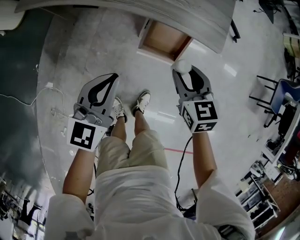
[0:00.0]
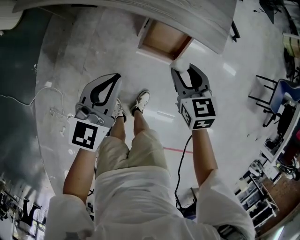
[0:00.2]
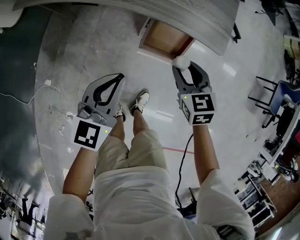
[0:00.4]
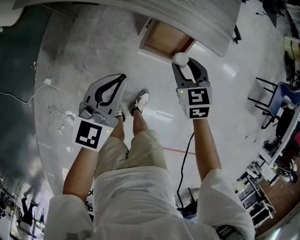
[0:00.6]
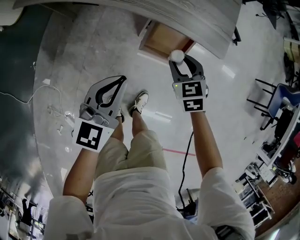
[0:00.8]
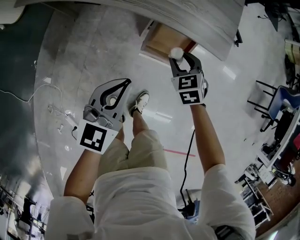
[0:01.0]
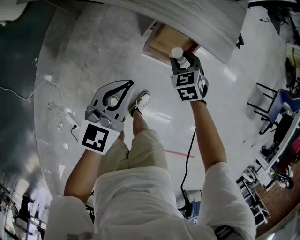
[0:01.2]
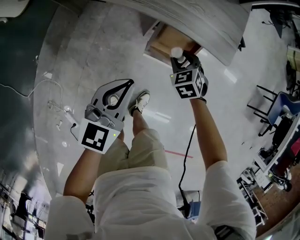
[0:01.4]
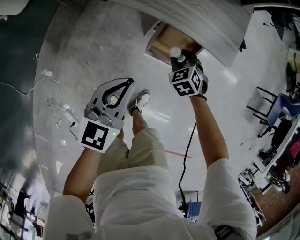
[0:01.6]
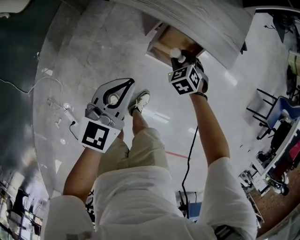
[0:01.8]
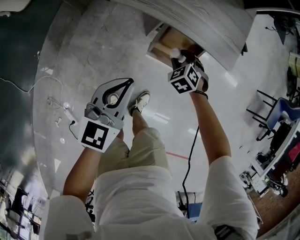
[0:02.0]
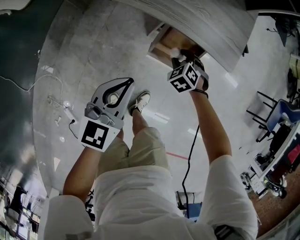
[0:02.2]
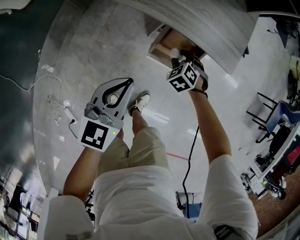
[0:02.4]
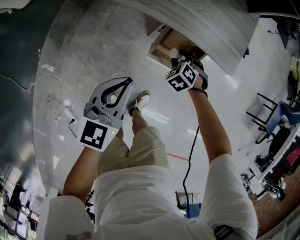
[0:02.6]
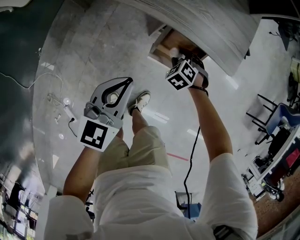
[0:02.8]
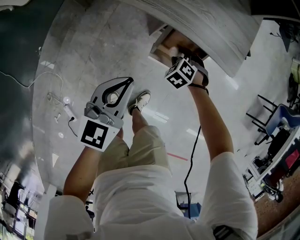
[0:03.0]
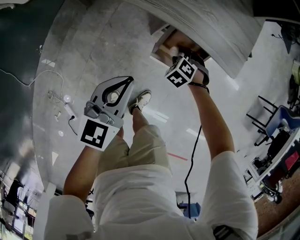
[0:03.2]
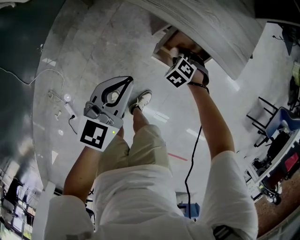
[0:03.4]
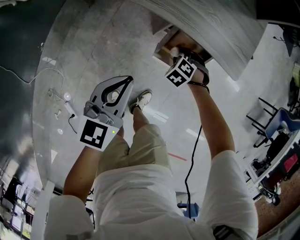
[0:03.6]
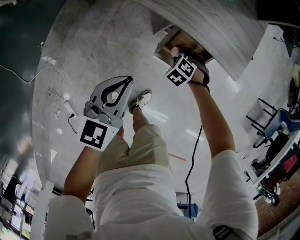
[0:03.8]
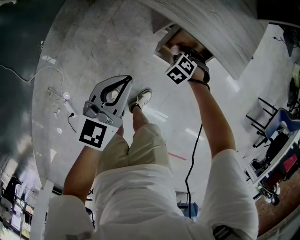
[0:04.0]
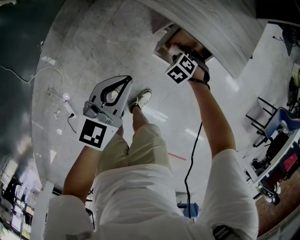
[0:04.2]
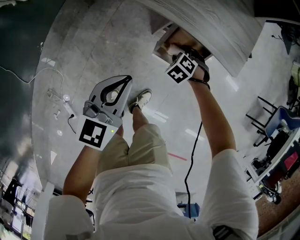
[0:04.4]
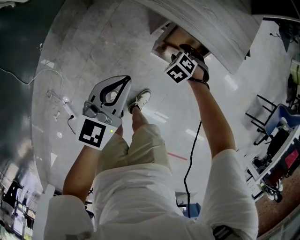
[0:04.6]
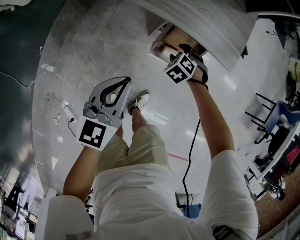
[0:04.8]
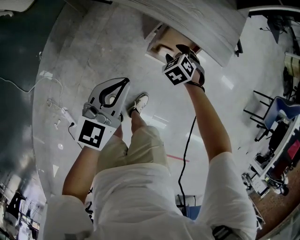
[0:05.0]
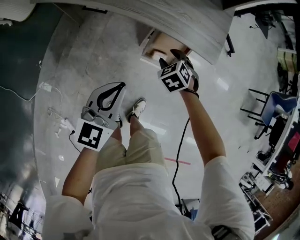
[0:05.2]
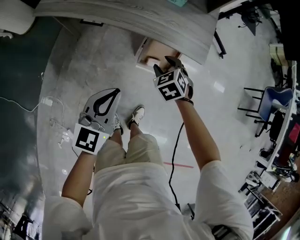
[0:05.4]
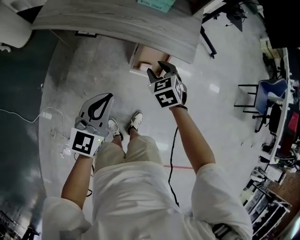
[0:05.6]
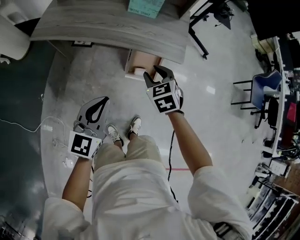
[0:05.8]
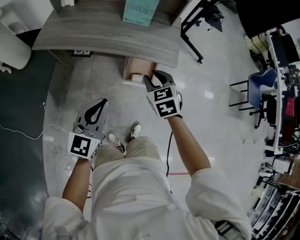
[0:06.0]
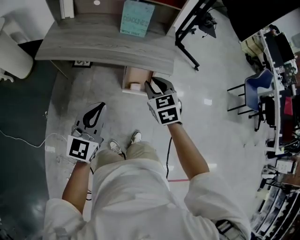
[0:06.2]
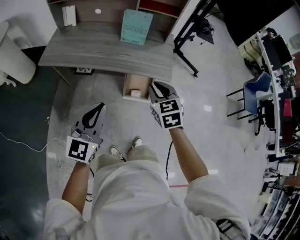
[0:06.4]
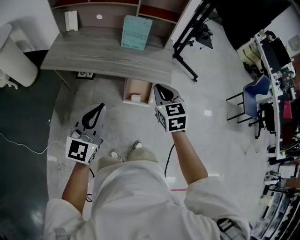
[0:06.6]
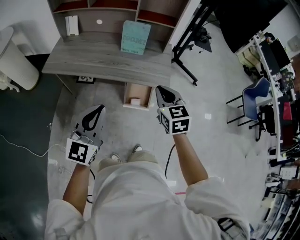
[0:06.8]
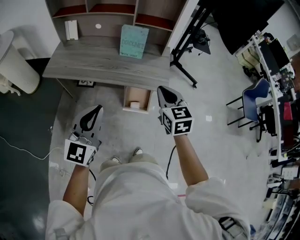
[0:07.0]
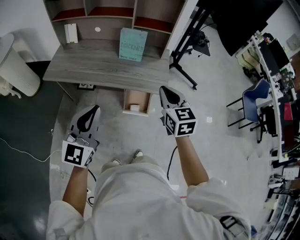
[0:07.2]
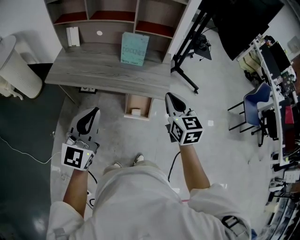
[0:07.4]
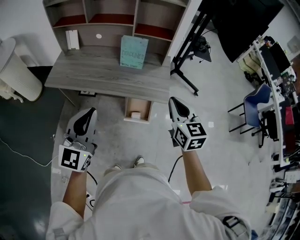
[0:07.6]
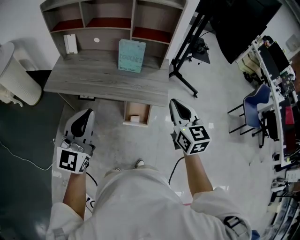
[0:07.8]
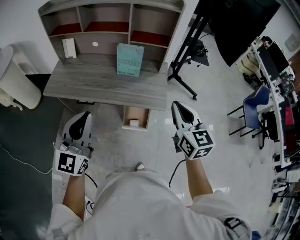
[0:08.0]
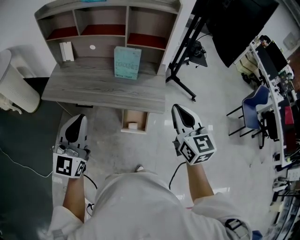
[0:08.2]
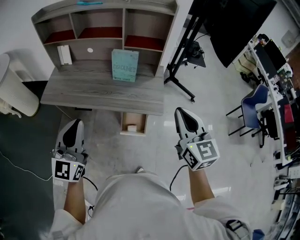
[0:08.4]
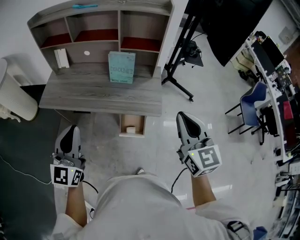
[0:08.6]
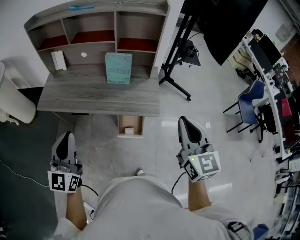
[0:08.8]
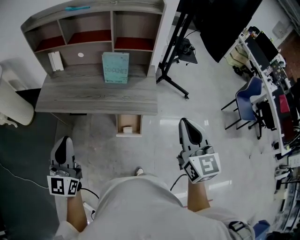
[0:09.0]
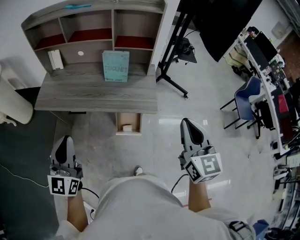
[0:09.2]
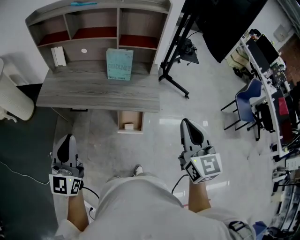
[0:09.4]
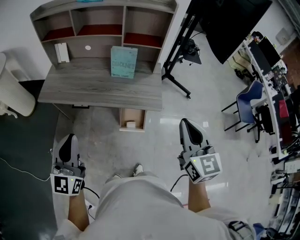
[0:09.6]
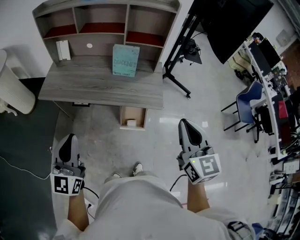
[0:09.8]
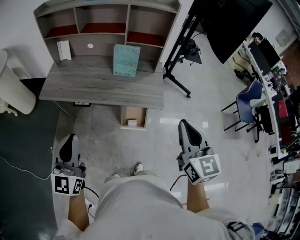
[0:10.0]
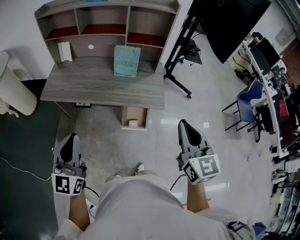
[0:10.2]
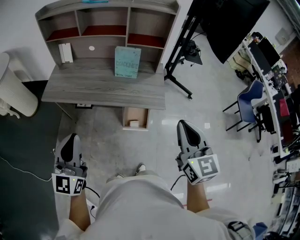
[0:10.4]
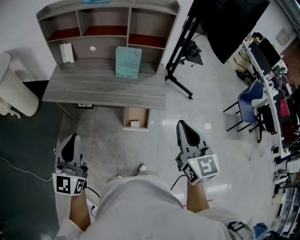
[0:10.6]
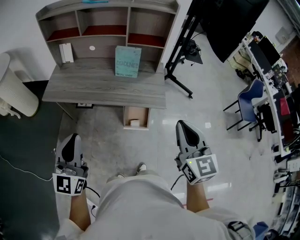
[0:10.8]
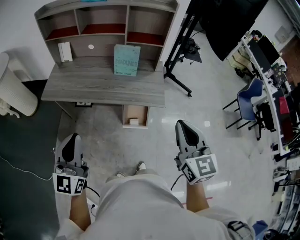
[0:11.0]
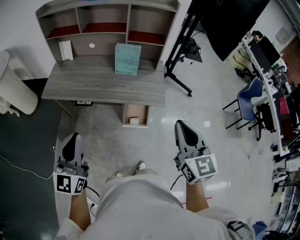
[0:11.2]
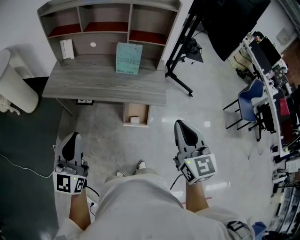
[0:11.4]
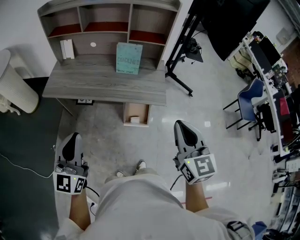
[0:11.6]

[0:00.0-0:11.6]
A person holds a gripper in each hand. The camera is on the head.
0:00.0 to 0:01.4: The right gripper moves downward and forward, roughly 15 cm, and changes its angle by roughly 30 degrees.
0:01.4 to 0:02.8: The right gripper travels downward by approximately 5 cm, and changes its angle by roughly 20 degrees.
0:02.8 to 0:04.4: There are only small adjustments of the grippers.
0:04.4 to 0:05.8: The left gripper goes about 15 cm upward; the right gripper is displaced upward by approximately 35 cm, and tips its fingers upward by approximately 30 degrees.
0:05.8 to 0:07.2: Both grippers travel together upward, roughly 20 cm. The right gripper turns by approximately 30 degrees, and closes.
0:07.2 to 0:08.8: The right gripper heads upward and to the right, covering approximately 15 cm; the left gripper travels to the left by about 5 cm.
0:08.8 to 0:10.2: The right gripper shifts some 10 cm backward and to the left, while the left gripper travels backward by approximately 5 cm.
0:10.2 to 0:11.6: The grippers move only a little.

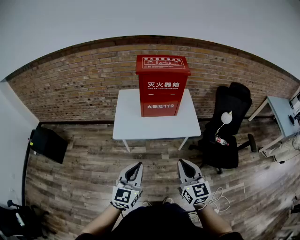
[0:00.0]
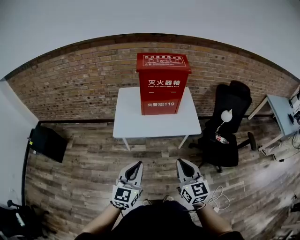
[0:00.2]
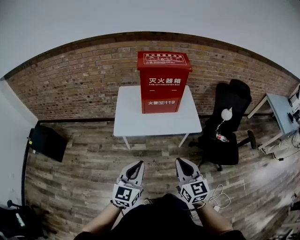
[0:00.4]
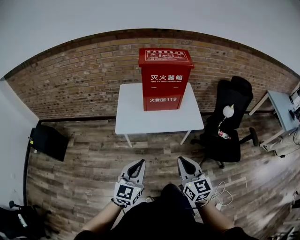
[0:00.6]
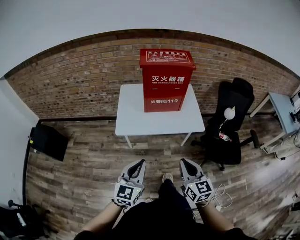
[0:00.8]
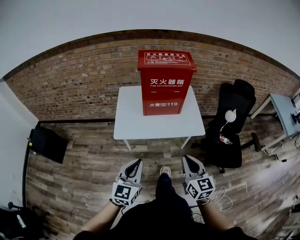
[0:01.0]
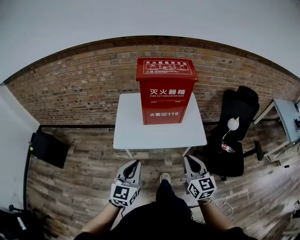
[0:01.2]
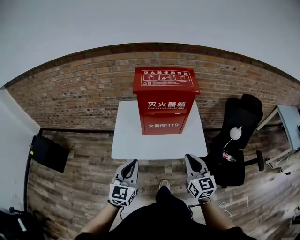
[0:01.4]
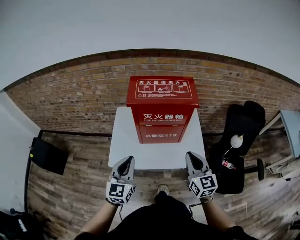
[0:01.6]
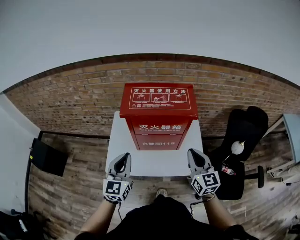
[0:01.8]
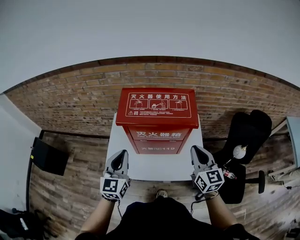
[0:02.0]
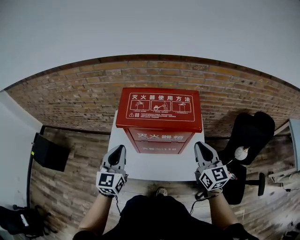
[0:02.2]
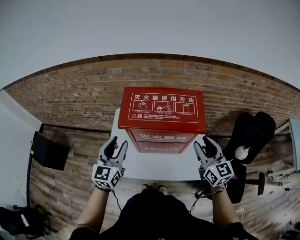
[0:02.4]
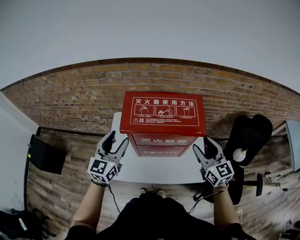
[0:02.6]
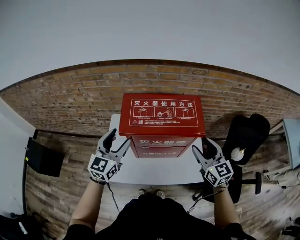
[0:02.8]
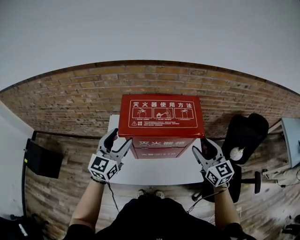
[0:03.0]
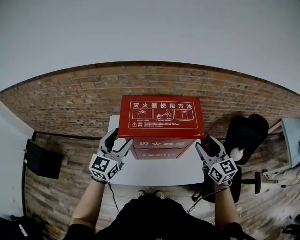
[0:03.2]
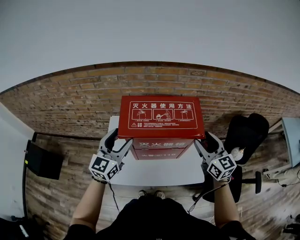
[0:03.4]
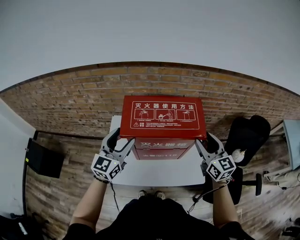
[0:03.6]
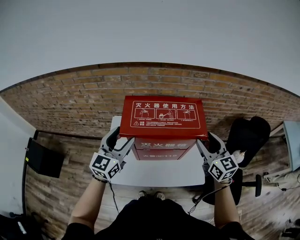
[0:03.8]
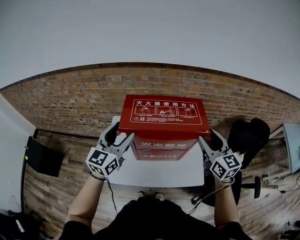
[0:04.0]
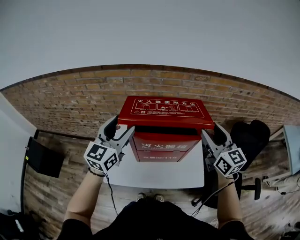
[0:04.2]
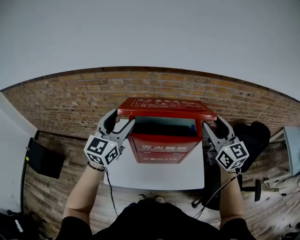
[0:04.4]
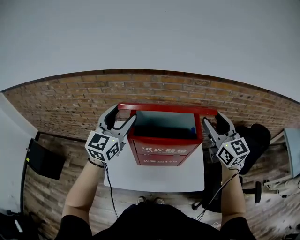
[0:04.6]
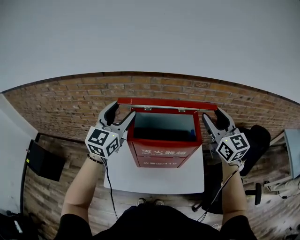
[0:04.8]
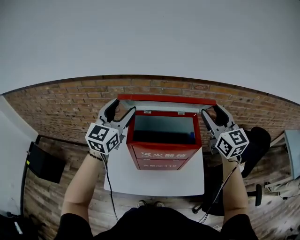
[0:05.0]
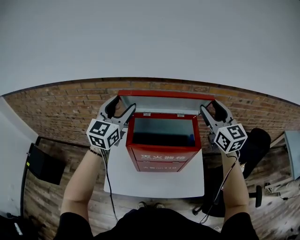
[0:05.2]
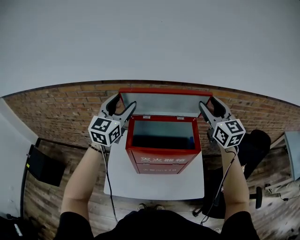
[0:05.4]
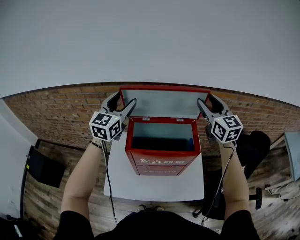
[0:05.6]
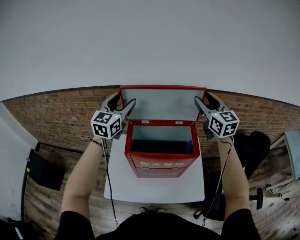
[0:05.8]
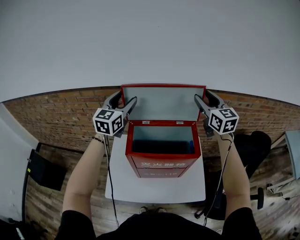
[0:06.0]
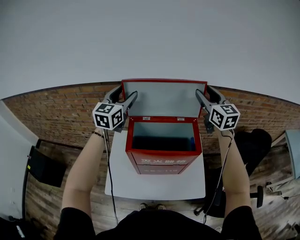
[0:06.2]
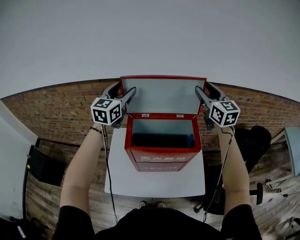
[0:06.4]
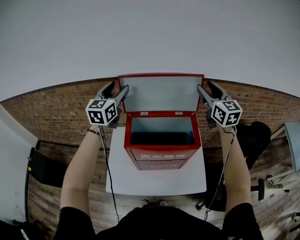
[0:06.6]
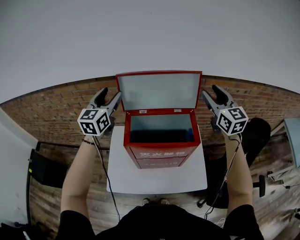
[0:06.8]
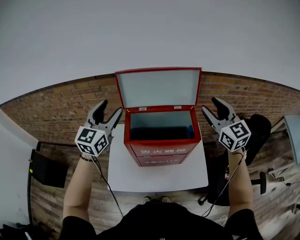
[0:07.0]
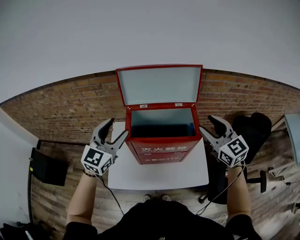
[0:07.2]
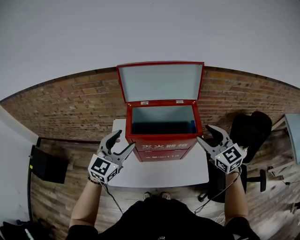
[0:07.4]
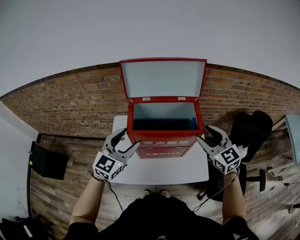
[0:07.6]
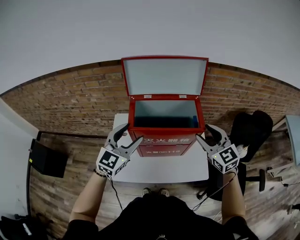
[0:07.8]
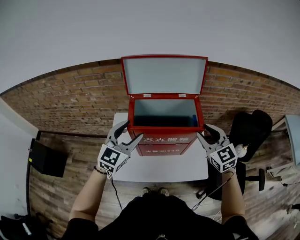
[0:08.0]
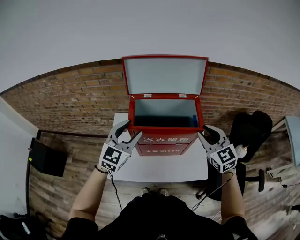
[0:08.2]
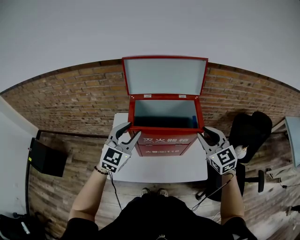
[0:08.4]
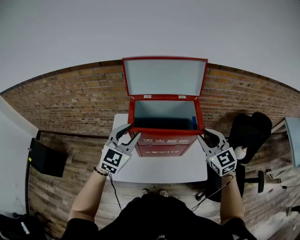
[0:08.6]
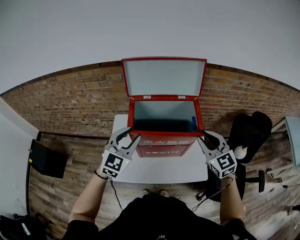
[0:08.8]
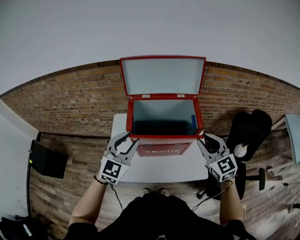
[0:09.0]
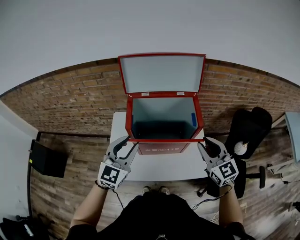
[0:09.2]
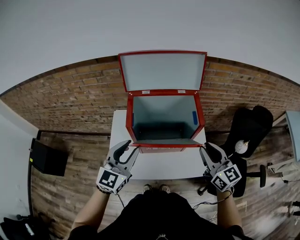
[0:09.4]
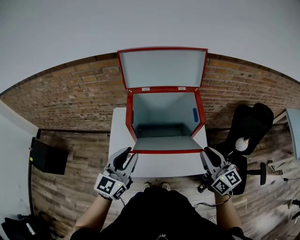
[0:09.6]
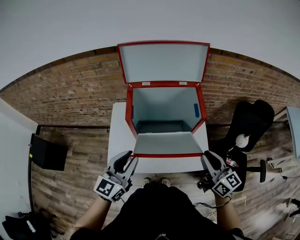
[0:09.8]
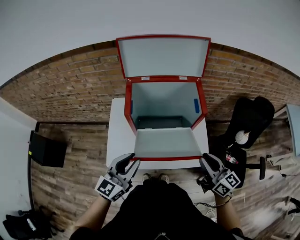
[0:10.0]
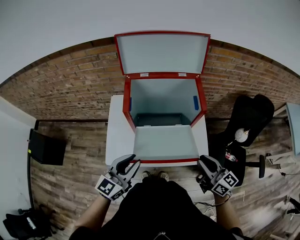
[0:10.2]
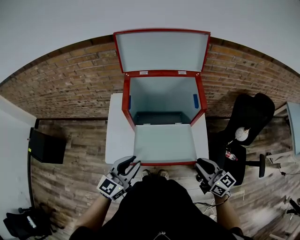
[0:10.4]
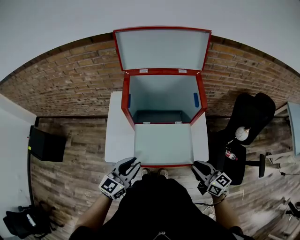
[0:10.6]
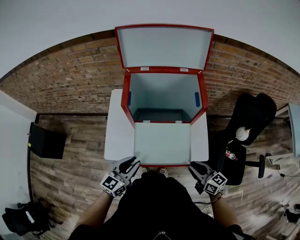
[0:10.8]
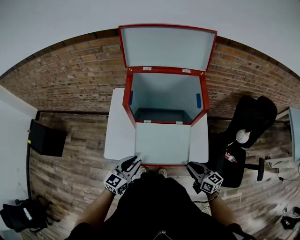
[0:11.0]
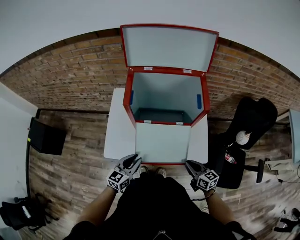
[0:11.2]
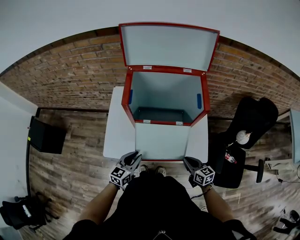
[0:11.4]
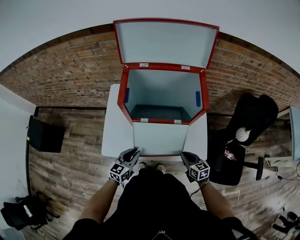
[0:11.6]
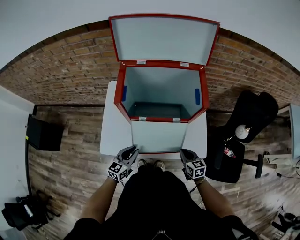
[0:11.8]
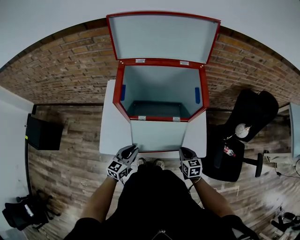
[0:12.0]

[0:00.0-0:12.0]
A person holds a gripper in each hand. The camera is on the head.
0:00.0 to 0:01.6: The two grippers go some 30 cm forward.
0:01.6 to 0:03.0: Both grippers move forward, about 25 cm. The right gripper opens its fingers, while the left gripper opens its fingers.
0:03.0 to 0:04.4: The right gripper is displaced upward and forward by some 15 cm, while the left gripper is displaced upward by some 10 cm.
0:04.4 to 0:06.0: The grippers both shift forward by some 15 cm.
0:06.0 to 0:07.6: The two grippers go approximately 25 cm backward and downward.
0:07.6 to 0:09.0: The left gripper closes. Meanwhile the right gripper closes up.
0:09.0 to 0:10.4: Both grippers travel together backward and downward, about 20 cm. The left gripper swivels roughly 30 degrees, while the right gripper changes its angle by approximately 40 degrees.
0:10.4 to 0:12.0: The two grippers go about 20 cm downward. The right gripper points its fingers about 30 degrees further downward.
